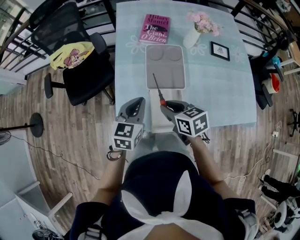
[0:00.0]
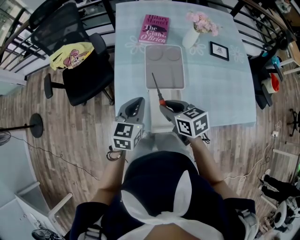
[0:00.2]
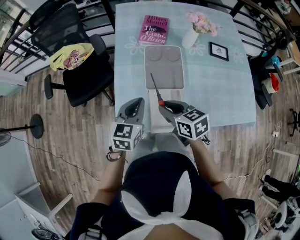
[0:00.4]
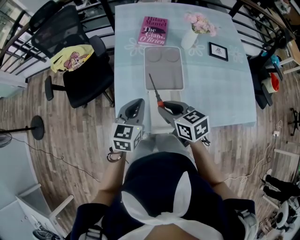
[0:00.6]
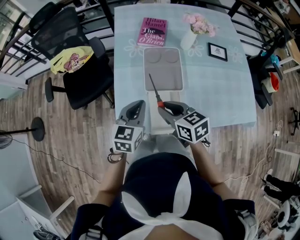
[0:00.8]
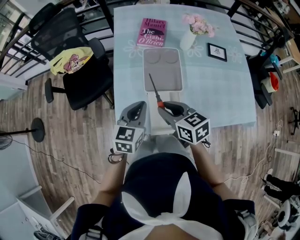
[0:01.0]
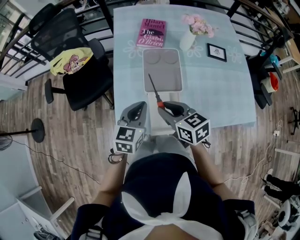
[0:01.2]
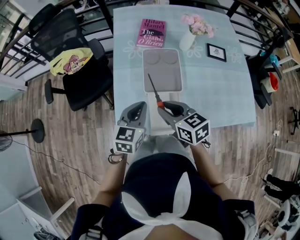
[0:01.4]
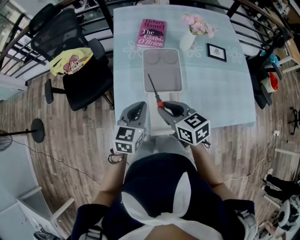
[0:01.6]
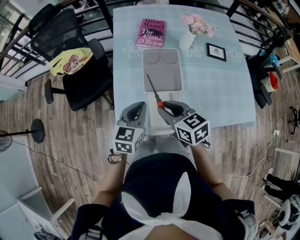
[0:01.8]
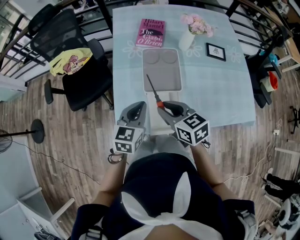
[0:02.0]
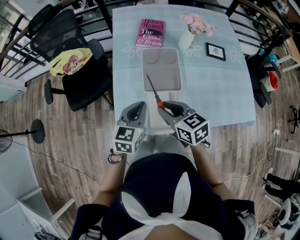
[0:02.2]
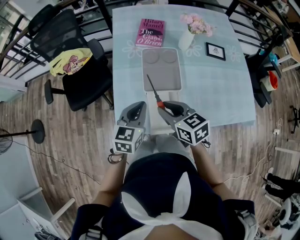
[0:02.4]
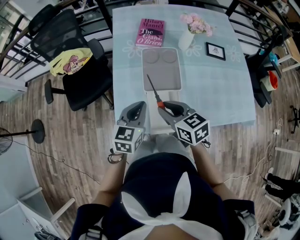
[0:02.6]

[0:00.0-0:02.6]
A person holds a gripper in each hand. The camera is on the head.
0:00.0 to 0:01.2: There are only small adjustments of the grippers.
0:01.2 to 0:02.6: Neither gripper changes place.

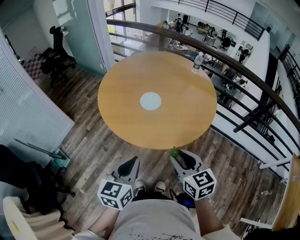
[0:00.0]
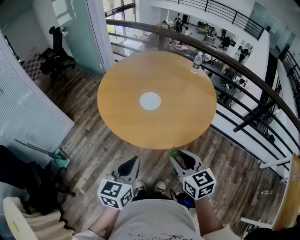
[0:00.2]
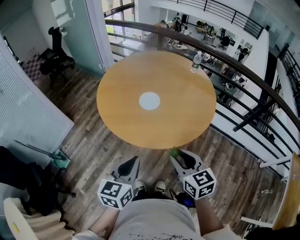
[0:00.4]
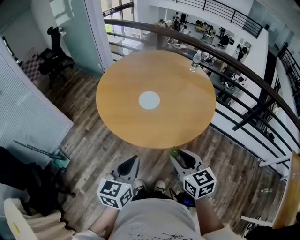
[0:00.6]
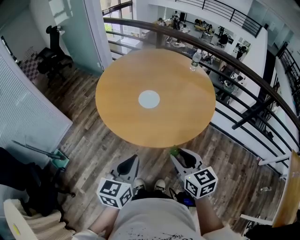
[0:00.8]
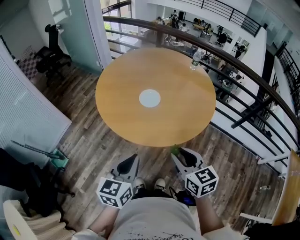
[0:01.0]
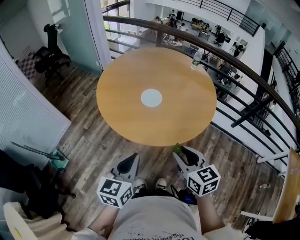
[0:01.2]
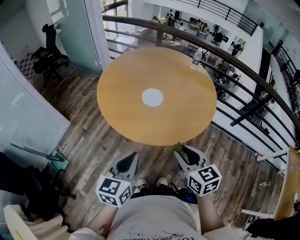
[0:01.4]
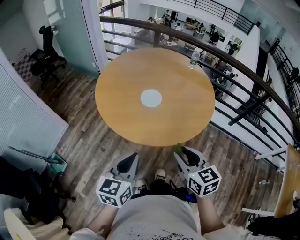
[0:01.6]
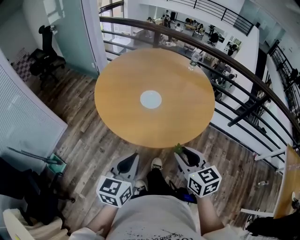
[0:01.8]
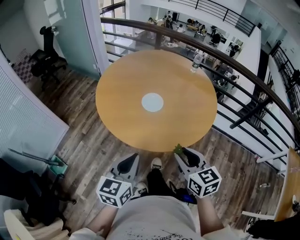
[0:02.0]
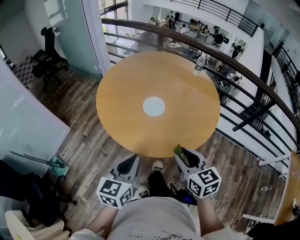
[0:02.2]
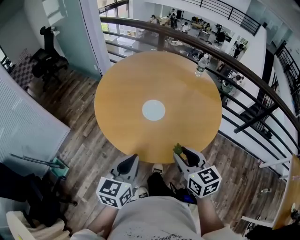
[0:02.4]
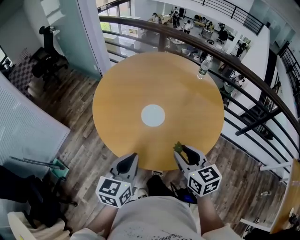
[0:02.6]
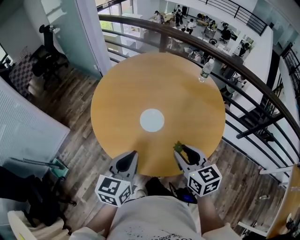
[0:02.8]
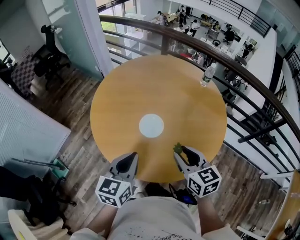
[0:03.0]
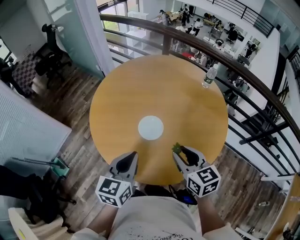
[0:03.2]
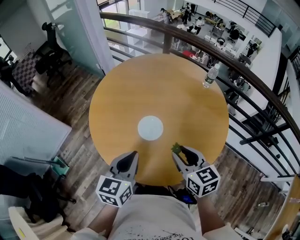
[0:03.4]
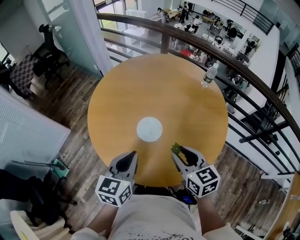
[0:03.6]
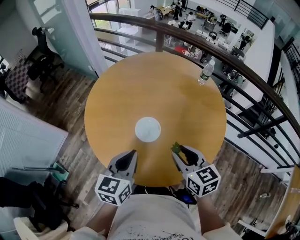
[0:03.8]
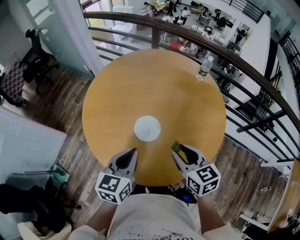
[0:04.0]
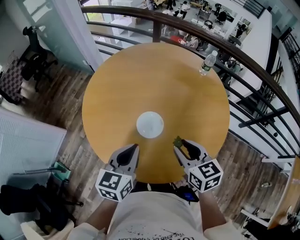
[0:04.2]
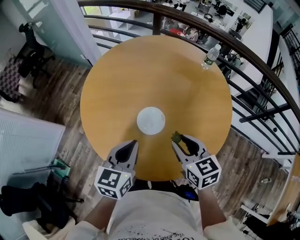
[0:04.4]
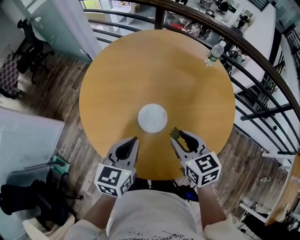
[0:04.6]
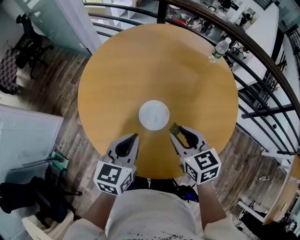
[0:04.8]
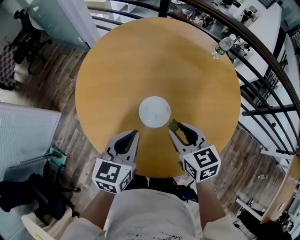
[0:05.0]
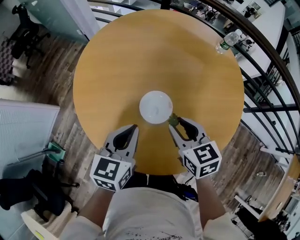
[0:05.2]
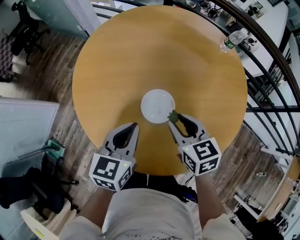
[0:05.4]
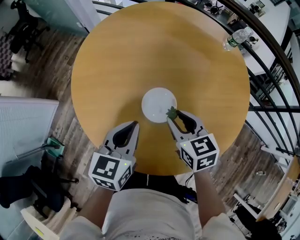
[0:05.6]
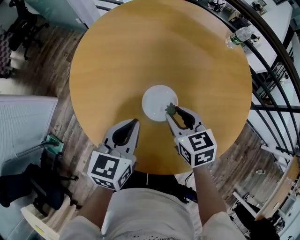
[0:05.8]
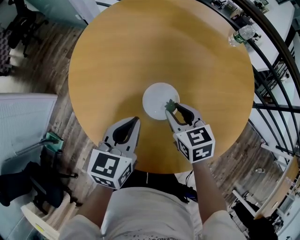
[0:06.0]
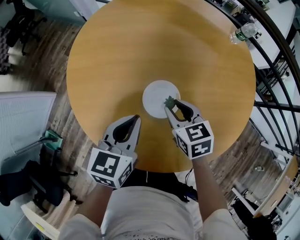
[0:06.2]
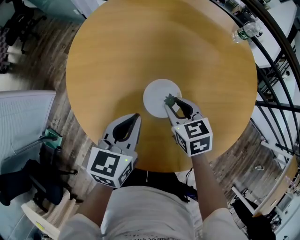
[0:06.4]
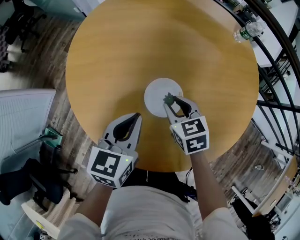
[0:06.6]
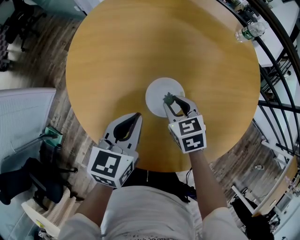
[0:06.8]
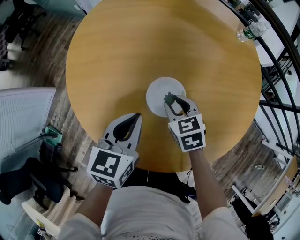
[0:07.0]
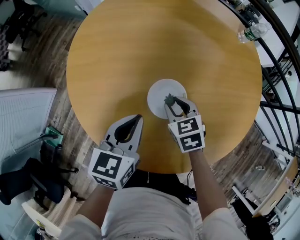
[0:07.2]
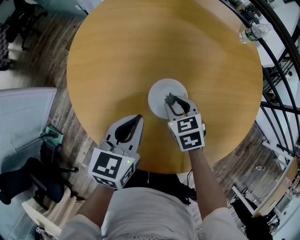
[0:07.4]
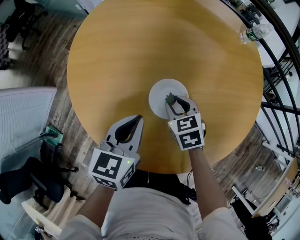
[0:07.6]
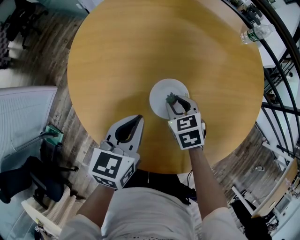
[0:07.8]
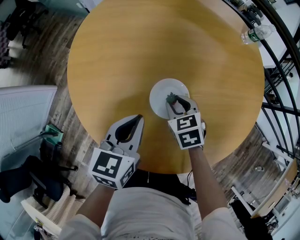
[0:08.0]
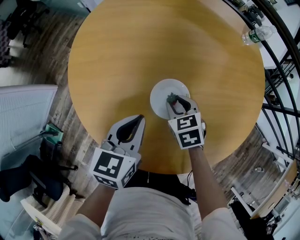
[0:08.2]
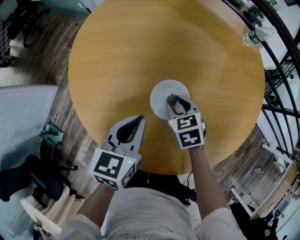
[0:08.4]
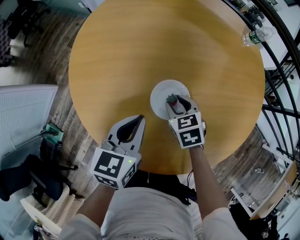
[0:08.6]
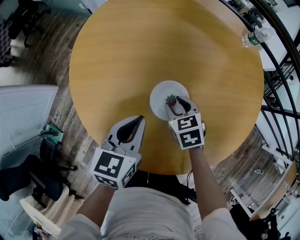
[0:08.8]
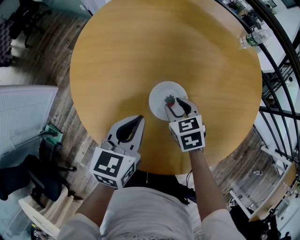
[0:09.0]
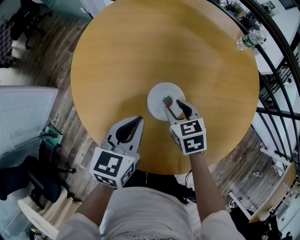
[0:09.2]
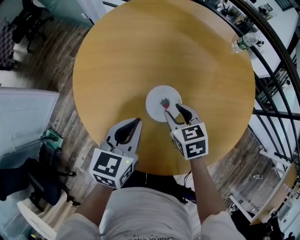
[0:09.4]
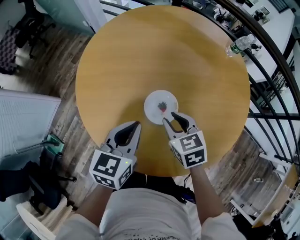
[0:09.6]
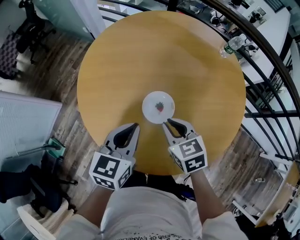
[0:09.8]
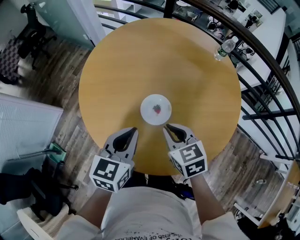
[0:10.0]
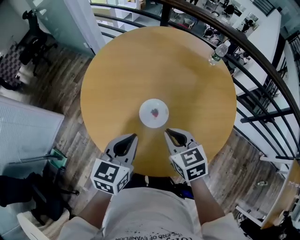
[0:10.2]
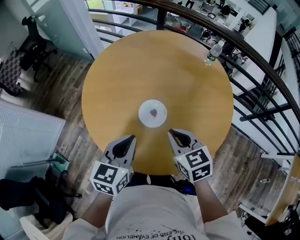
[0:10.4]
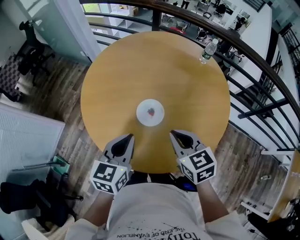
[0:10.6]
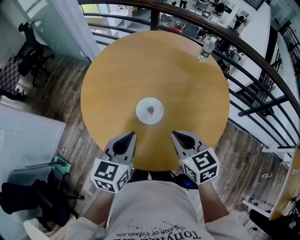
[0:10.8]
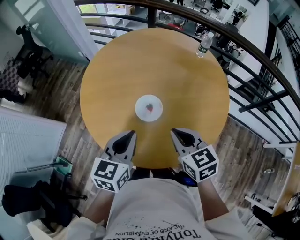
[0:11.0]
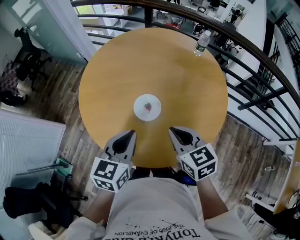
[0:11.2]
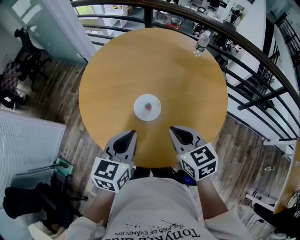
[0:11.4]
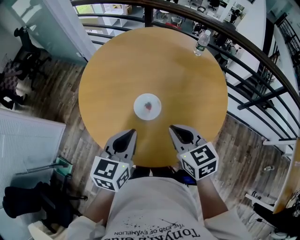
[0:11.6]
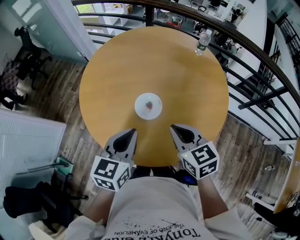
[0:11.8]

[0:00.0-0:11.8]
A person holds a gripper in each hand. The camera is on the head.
0:00.0 to 0:01.4: The left gripper changes place by approximately 5 cm.
0:01.4 to 0:03.0: Both grippers travel together forward, some 25 cm.
0:03.0 to 0:04.4: Both grippers move forward, roughly 10 cm.
0:04.4 to 0:06.0: Both grippers move downward and forward, approximately 15 cm.
0:06.0 to 0:07.4: The right gripper heads downward, covering about 10 cm.
0:07.4 to 0:08.8: The grippers move only a little.
0:08.8 to 0:10.4: The right gripper travels upward and backward by some 25 cm, and closes up. Meanwhile the left gripper is displaced upward and backward by approximately 15 cm.
0:10.4 to 0:11.8: The grippers move only a little.

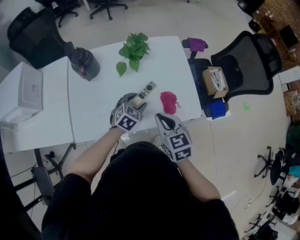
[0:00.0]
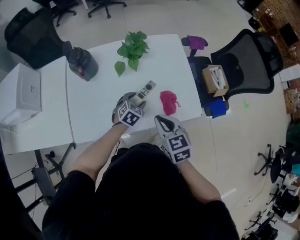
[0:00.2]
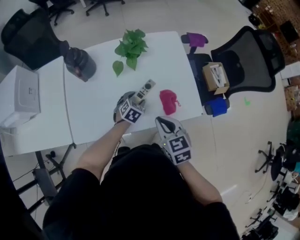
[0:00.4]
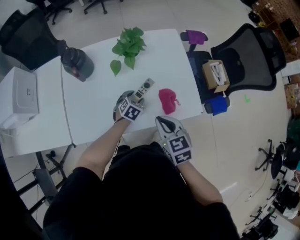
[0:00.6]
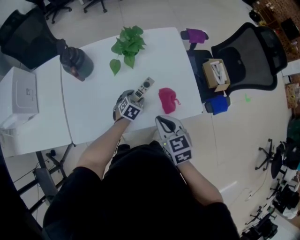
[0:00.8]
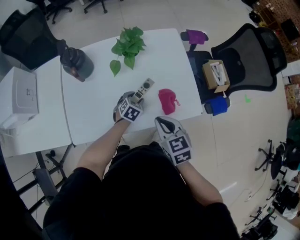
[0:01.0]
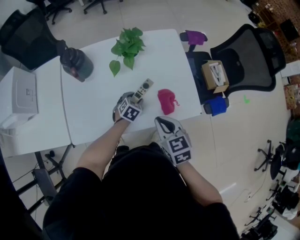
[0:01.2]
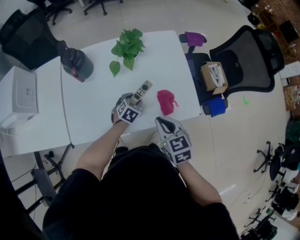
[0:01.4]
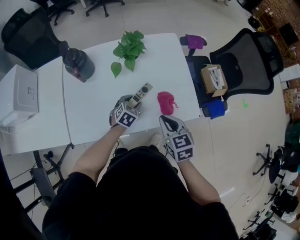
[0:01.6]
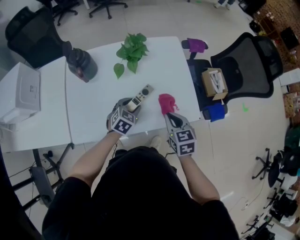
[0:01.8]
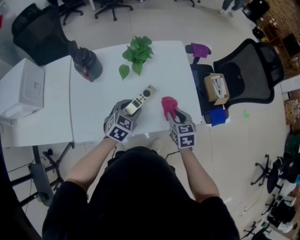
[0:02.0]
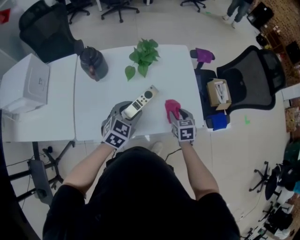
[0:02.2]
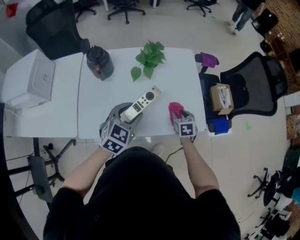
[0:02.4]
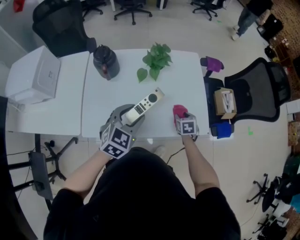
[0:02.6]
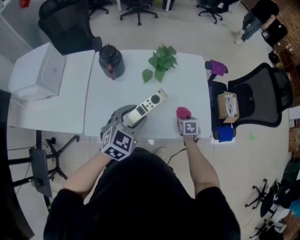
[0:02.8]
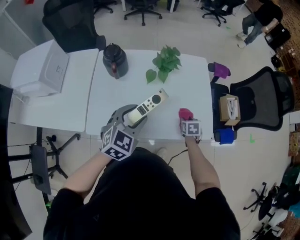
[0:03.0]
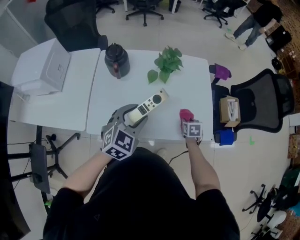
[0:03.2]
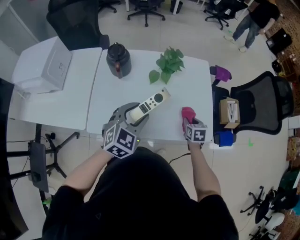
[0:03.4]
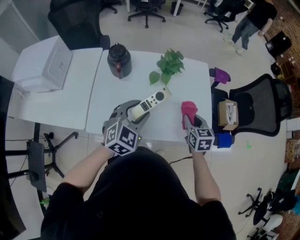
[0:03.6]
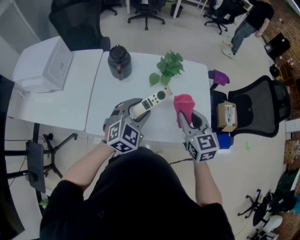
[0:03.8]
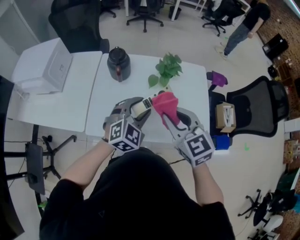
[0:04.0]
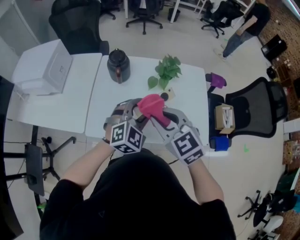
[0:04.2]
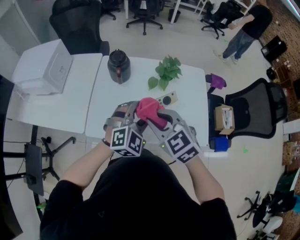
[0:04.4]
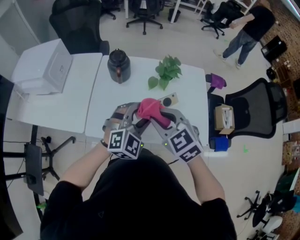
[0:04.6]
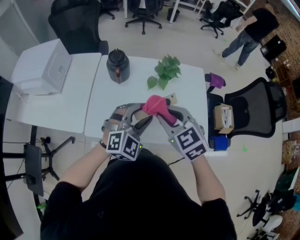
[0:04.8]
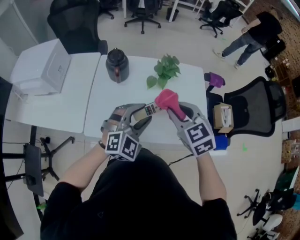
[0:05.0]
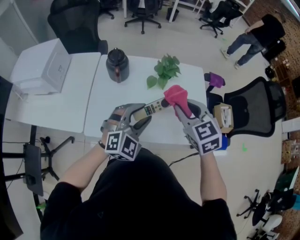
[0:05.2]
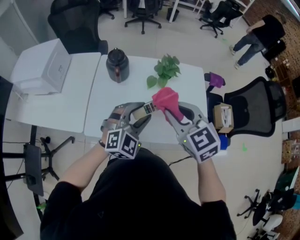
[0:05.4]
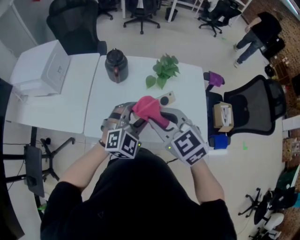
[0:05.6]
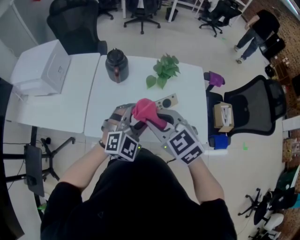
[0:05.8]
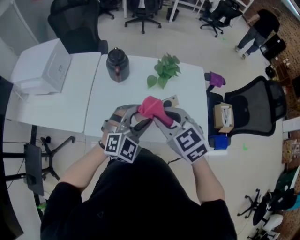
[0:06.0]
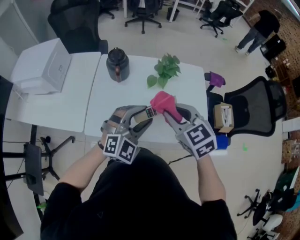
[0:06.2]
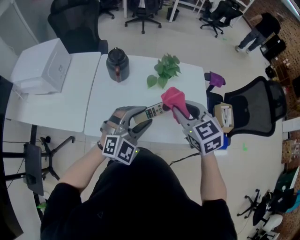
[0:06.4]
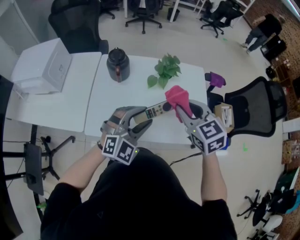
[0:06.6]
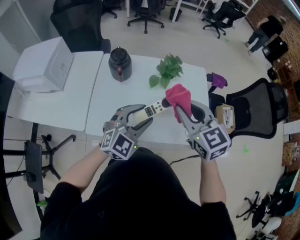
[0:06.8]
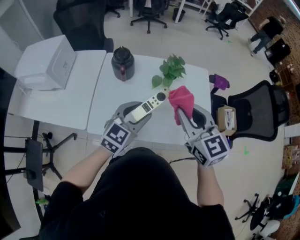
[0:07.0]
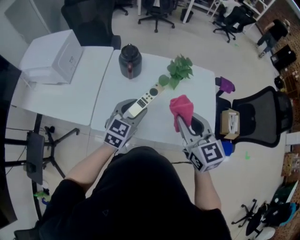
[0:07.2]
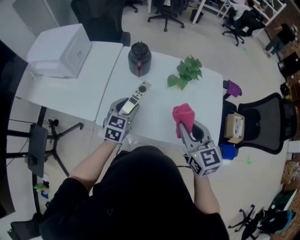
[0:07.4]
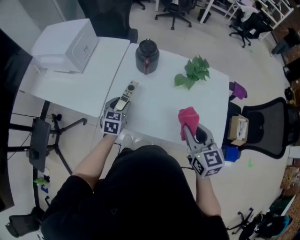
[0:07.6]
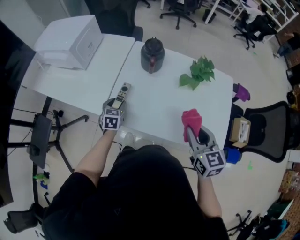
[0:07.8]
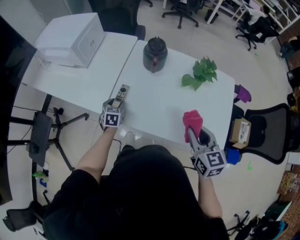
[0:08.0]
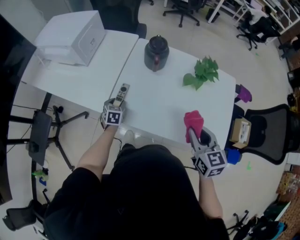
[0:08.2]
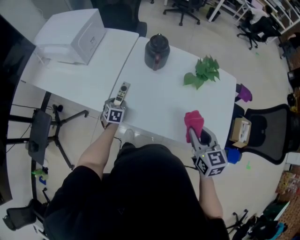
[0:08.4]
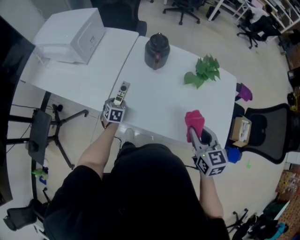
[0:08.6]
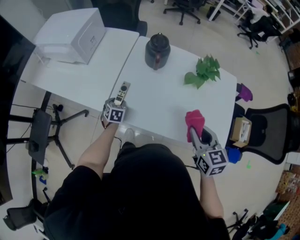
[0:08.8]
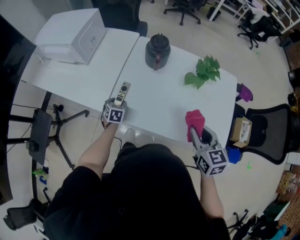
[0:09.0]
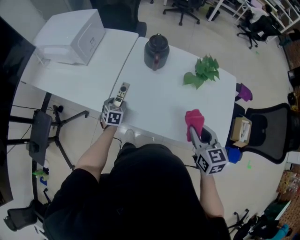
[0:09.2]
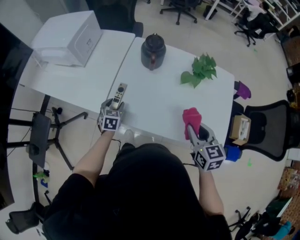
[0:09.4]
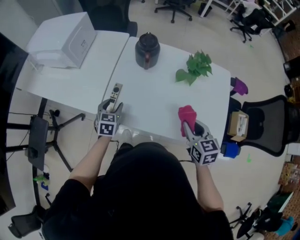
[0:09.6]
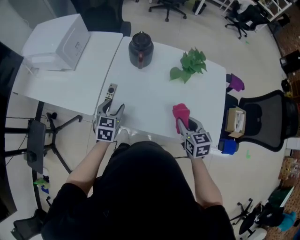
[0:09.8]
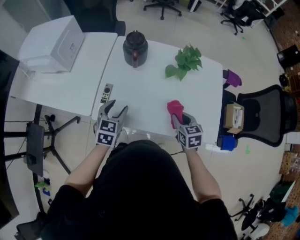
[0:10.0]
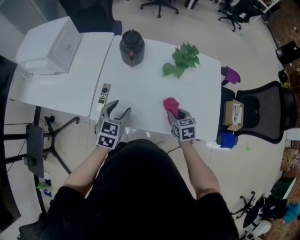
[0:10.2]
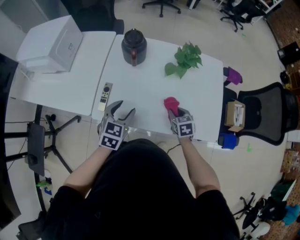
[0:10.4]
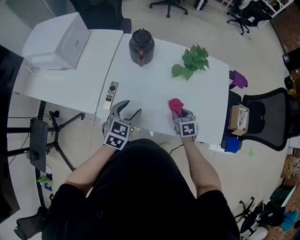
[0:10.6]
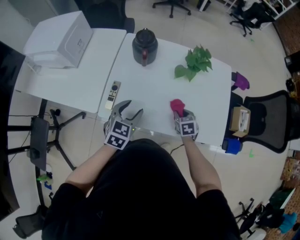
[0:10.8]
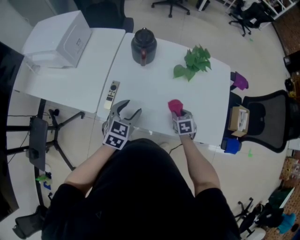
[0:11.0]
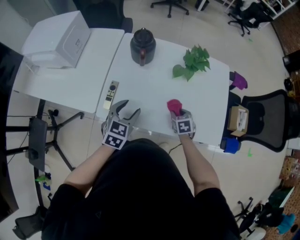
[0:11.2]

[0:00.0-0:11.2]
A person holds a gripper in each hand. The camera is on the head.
0:00.0 to 0:01.6: The right gripper ends up roughly 5 cm from where it was, while the left gripper moves downward, some 5 cm.
0:01.6 to 0:03.2: The right gripper shifts approximately 20 cm downward and forward, turns by approximately 20 degrees, and opens its fingers; the left gripper travels upward by roughly 20 cm, and turns by approximately 20 degrees.
0:03.2 to 0:04.8: The right gripper shifts about 35 cm upward and to the left, and rotates roughly 50 degrees. The left gripper turns by about 20 degrees.
0:04.8 to 0:06.4: The right gripper swings left and right, some 10 cm each way, with 2 reversals.
0:06.4 to 0:08.0: The right gripper shifts about 10 cm downward; the left gripper changes place by roughly 40 cm, and turns by some 80 degrees.
0:08.0 to 0:09.6: The right gripper moves downward, about 5 cm; the left gripper travels upward by roughly 5 cm.
0:09.6 to 0:11.2: The right gripper is displaced downward by approximately 20 cm, and rotates about 20 degrees, while the left gripper shifts roughly 15 cm to the right and upward.
